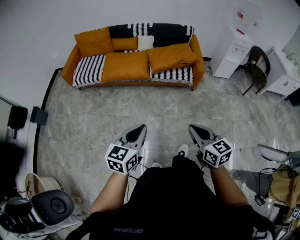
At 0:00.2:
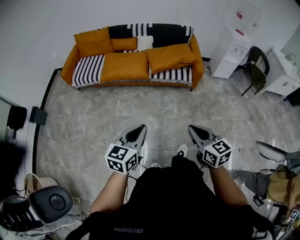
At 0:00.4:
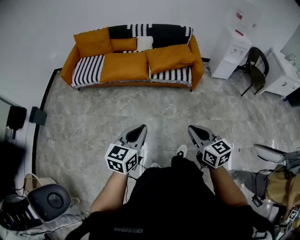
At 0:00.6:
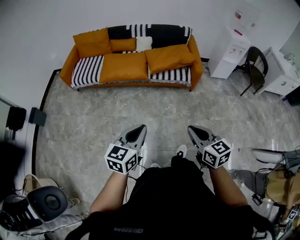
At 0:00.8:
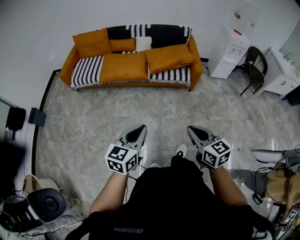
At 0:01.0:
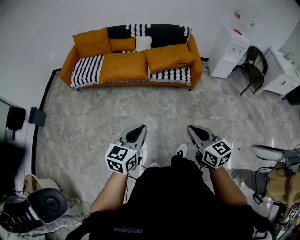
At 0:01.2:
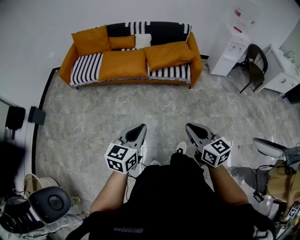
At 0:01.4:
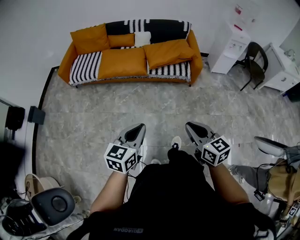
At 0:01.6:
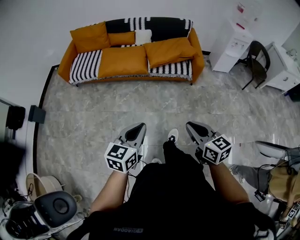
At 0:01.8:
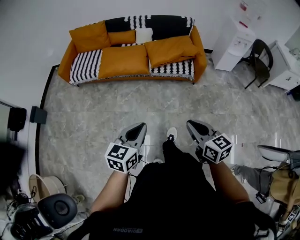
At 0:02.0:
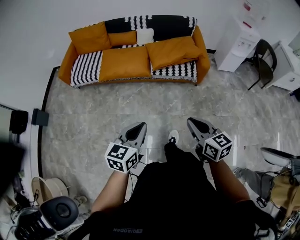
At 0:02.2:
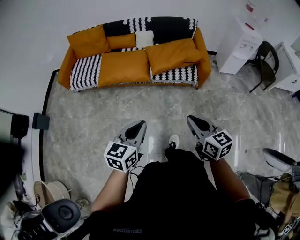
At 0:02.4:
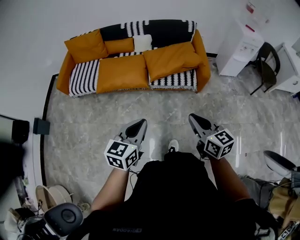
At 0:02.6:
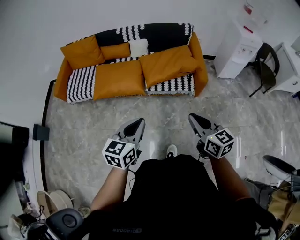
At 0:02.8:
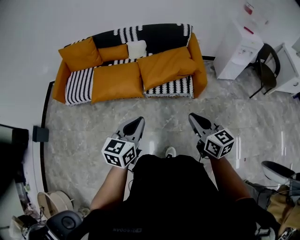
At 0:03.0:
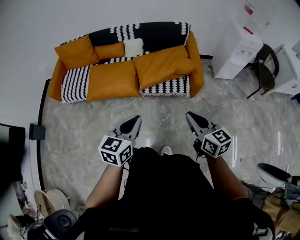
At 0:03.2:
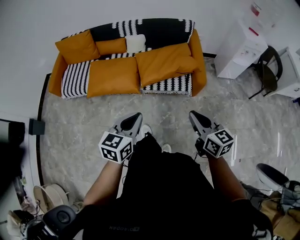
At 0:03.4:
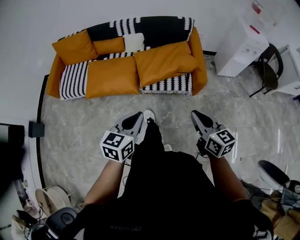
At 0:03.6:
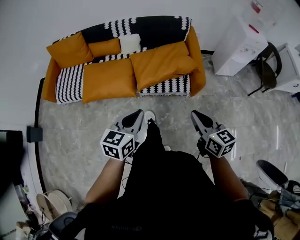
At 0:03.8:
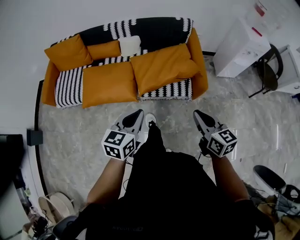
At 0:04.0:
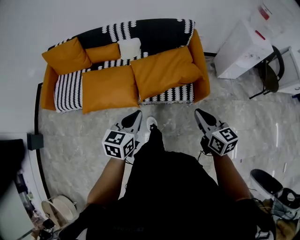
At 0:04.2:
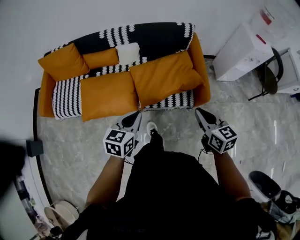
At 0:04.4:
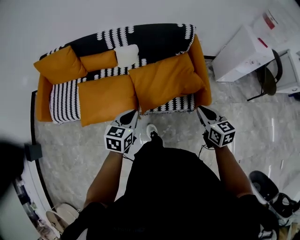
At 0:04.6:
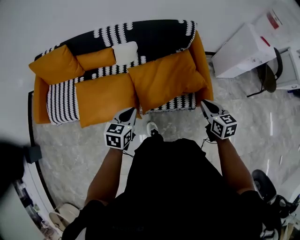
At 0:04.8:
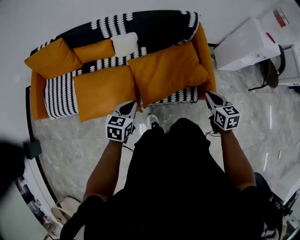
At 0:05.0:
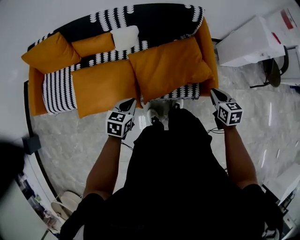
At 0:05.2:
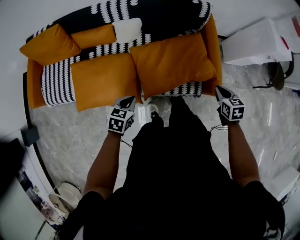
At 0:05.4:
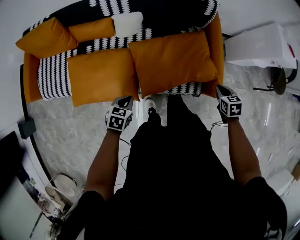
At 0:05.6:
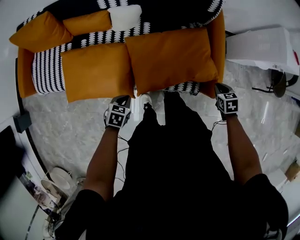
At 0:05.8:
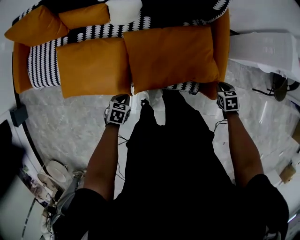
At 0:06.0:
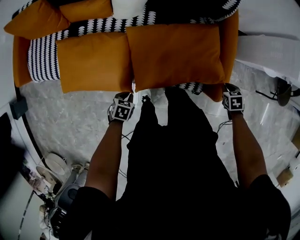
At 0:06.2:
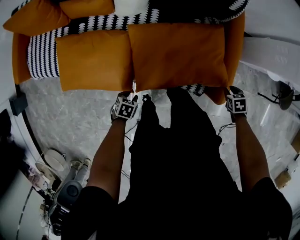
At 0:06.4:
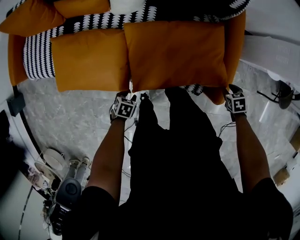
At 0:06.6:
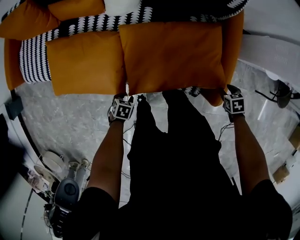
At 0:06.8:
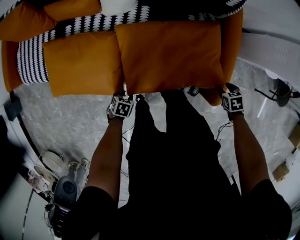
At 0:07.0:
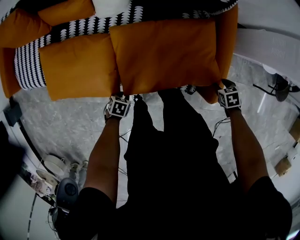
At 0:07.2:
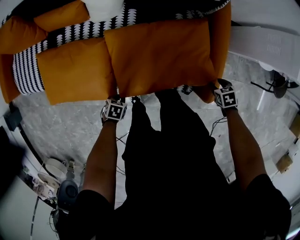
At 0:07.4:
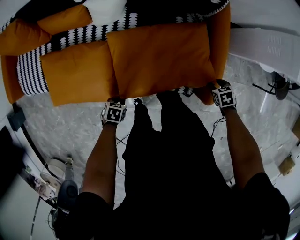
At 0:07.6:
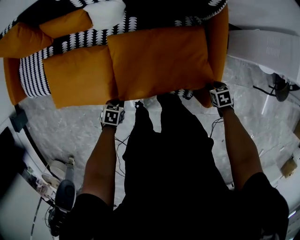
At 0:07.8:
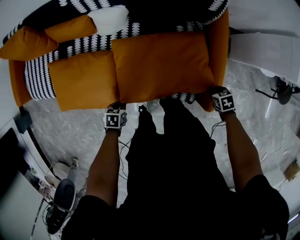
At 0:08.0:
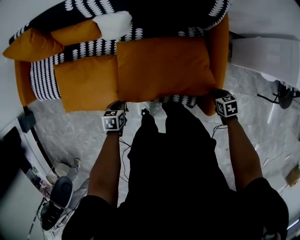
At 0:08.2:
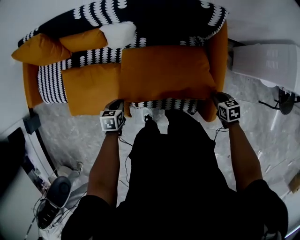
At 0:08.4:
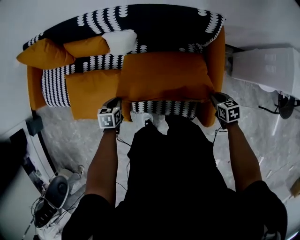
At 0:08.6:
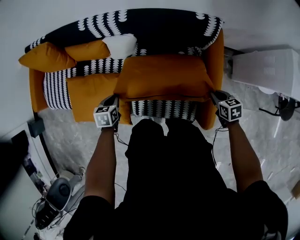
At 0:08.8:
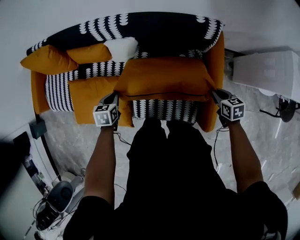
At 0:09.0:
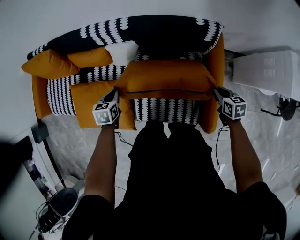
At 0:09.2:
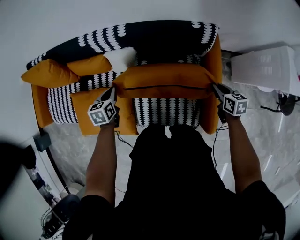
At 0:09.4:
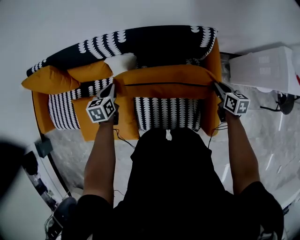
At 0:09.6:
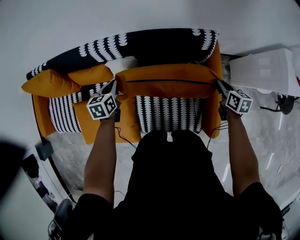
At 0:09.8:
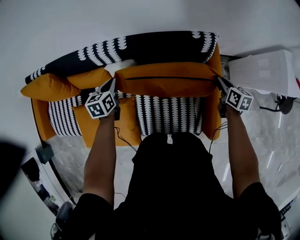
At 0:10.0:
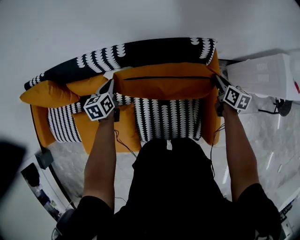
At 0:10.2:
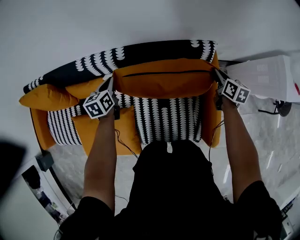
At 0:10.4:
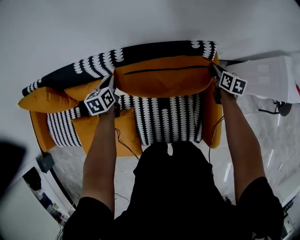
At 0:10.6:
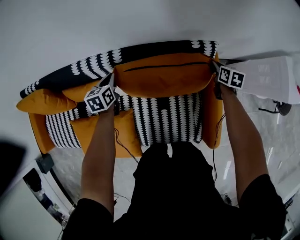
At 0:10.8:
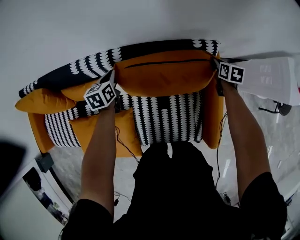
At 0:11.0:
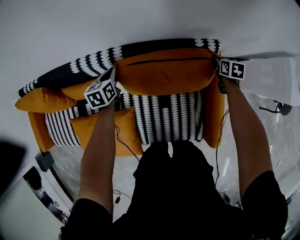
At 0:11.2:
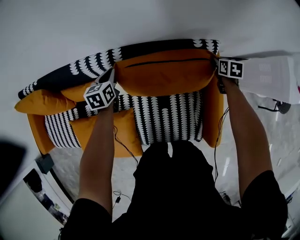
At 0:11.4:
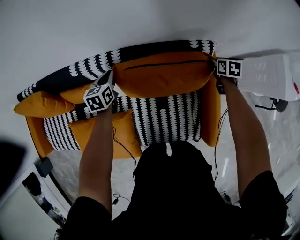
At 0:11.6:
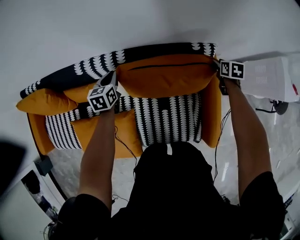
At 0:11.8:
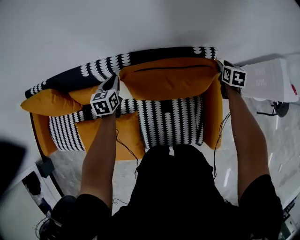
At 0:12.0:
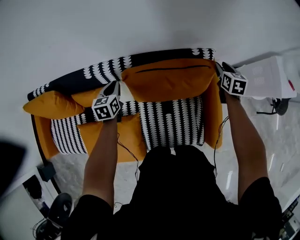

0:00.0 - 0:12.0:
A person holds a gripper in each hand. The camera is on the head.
0:00.0 - 0:01.6: The grippers move only a little.
0:01.6 - 0:03.0: The grippers both shift forward by about 30 cm.
0:03.0 - 0:04.4: The two grippers go roughly 30 cm forward.
0:04.4 - 0:06.0: The two grippers go roughly 30 cm downward. The left gripper tilts its fingers approximately 40 degrees downward. Meanwhile the right gripper tilts its fingers approximately 50 degrees downward.
0:06.0 - 0:07.6: The left gripper reaches roughly 10 cm downward, then returns, and opens, then closes once more. Meanwhile the right gripper travels downward by approximately 5 cm.
0:07.6 - 0:09.0: The left gripper ends up some 30 cm from where it was, and swivels roughly 30 degrees. The right gripper shifts by about 20 cm, and turns by some 30 degrees.
0:09.0 - 0:10.4: The two grippers go approximately 25 cm forward. The right gripper swivels some 30 degrees.
0:10.4 - 0:12.0: The right gripper travels upward by some 10 cm, and opens. The left gripper moves about 5 cm.

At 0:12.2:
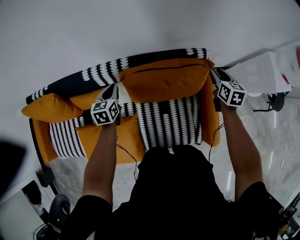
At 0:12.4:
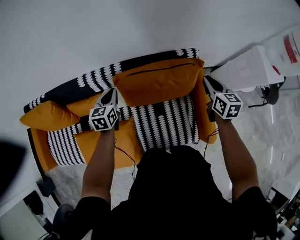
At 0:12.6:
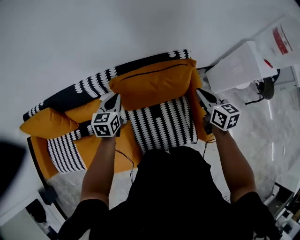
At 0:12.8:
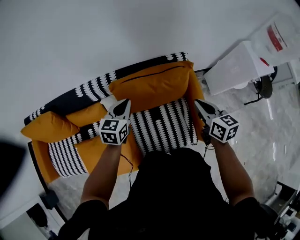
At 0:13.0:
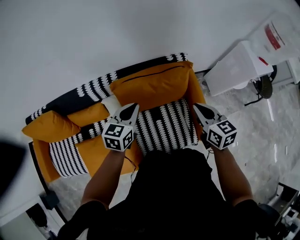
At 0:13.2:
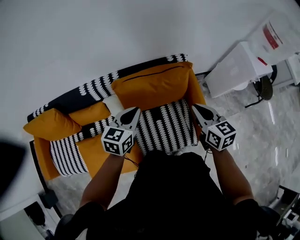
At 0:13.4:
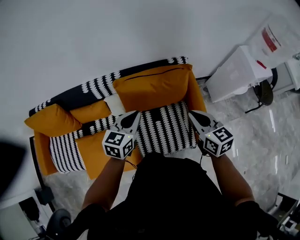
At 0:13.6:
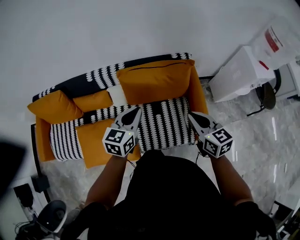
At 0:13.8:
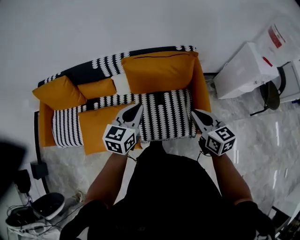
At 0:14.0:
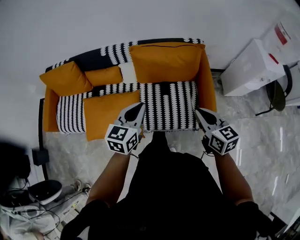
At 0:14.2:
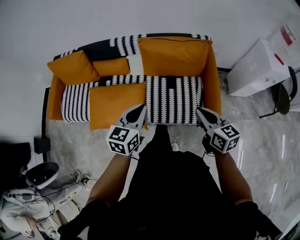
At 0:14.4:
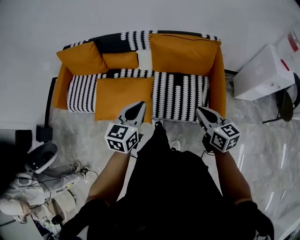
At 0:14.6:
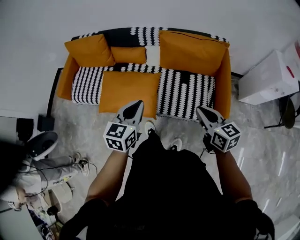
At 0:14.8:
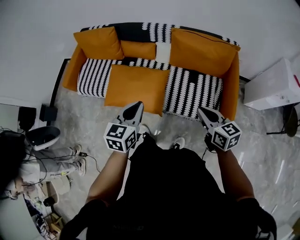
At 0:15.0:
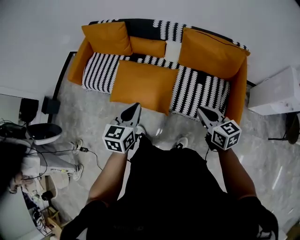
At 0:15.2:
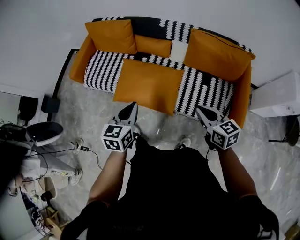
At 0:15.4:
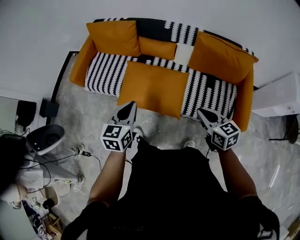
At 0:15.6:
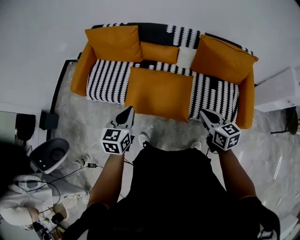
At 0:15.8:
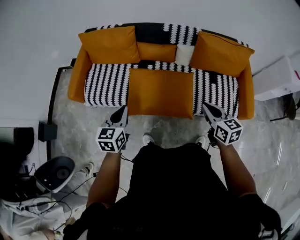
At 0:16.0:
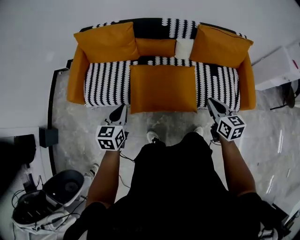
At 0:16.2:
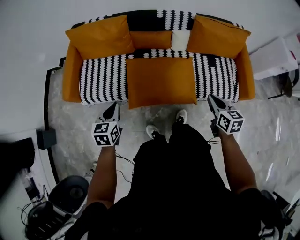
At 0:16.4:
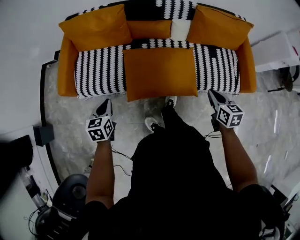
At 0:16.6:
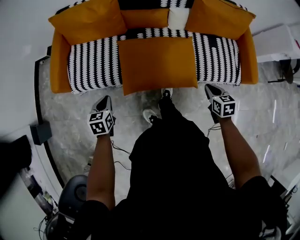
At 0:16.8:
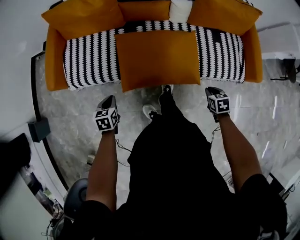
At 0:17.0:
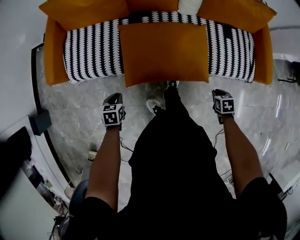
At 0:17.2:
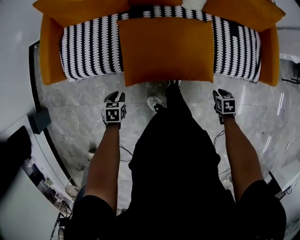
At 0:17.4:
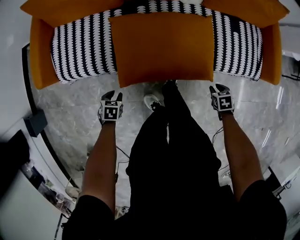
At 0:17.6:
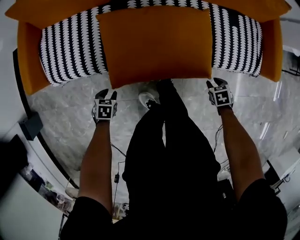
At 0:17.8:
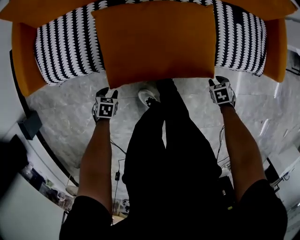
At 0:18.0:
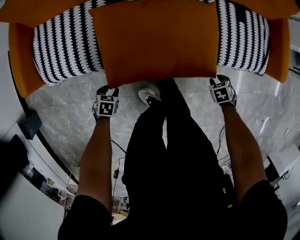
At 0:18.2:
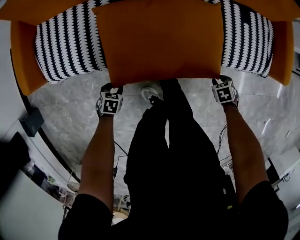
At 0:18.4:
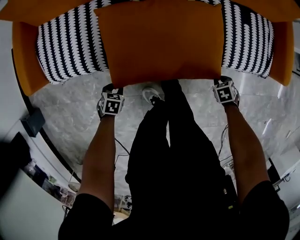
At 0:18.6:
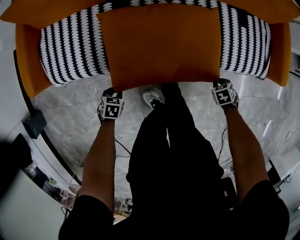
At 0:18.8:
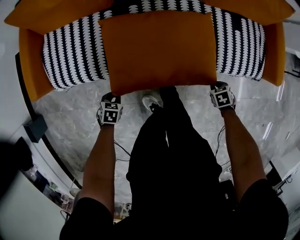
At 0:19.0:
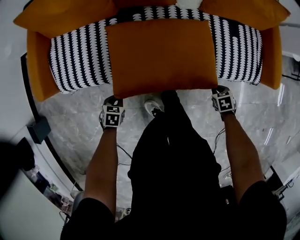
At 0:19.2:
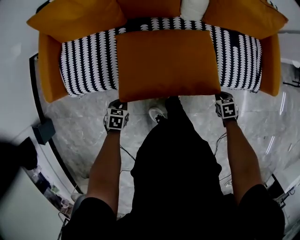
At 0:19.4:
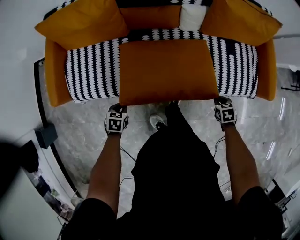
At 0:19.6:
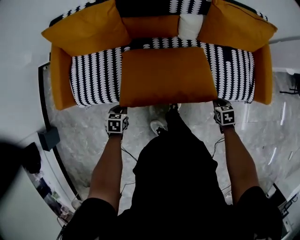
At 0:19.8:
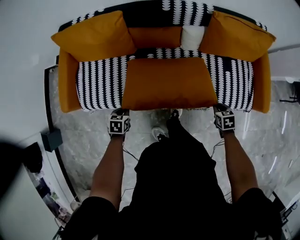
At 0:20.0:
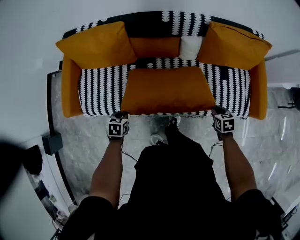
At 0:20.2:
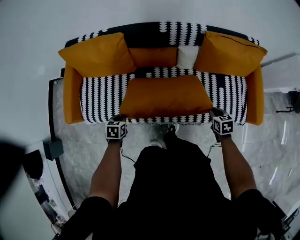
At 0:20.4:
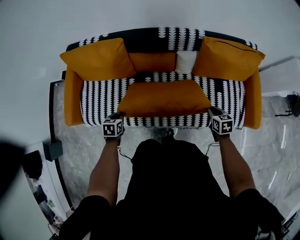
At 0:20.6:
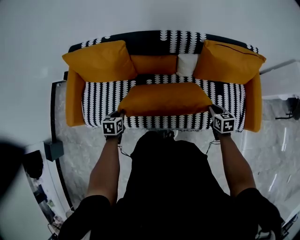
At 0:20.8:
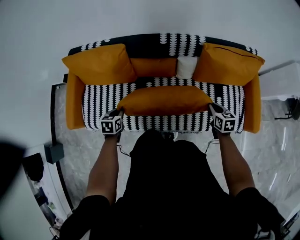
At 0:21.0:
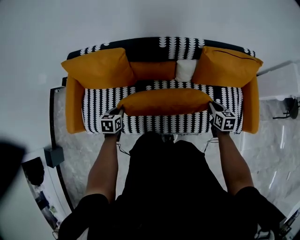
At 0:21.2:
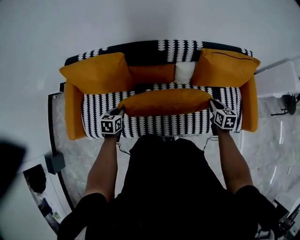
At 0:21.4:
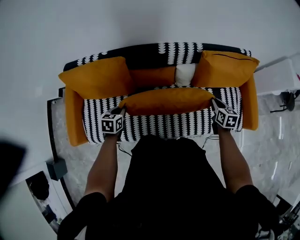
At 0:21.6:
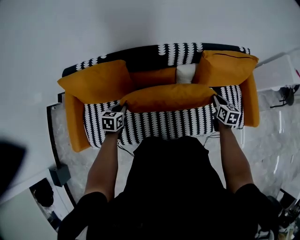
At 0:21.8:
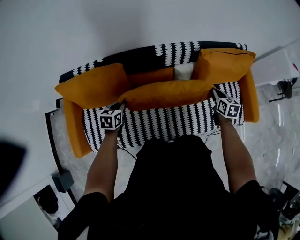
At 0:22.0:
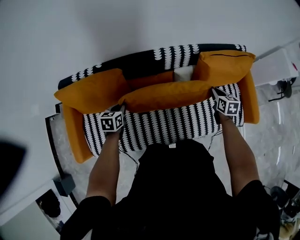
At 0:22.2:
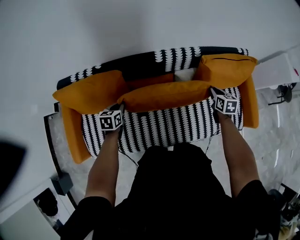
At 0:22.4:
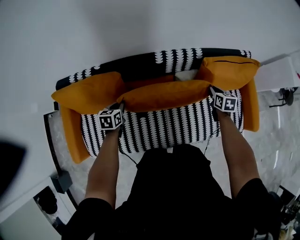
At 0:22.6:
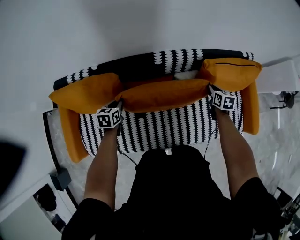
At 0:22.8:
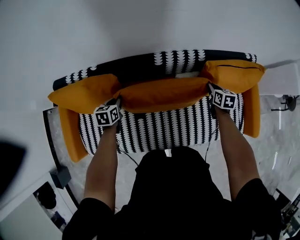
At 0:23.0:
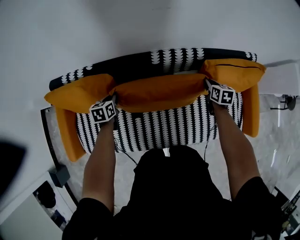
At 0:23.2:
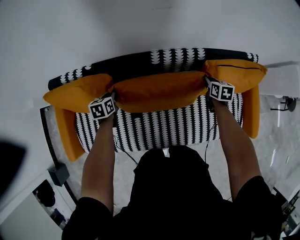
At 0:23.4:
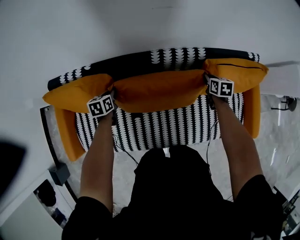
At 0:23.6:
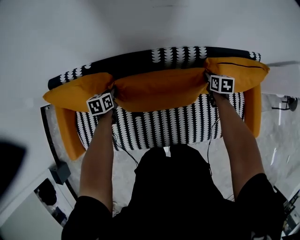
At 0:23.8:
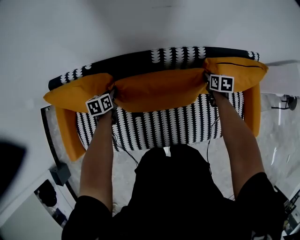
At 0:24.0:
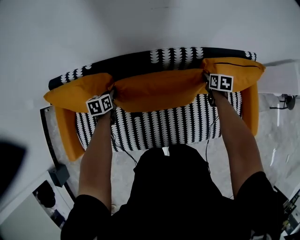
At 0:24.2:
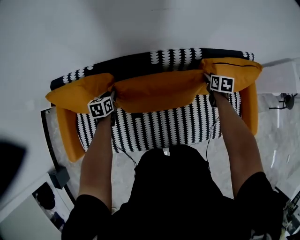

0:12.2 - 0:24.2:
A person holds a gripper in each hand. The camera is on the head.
0:12.2 - 0:13.8: The left gripper shifts some 40 cm backward, to the right and upward, and changes its angle by some 20 degrees. The right gripper moves backward, some 35 cm, changes its angle by roughly 30 degrees, and closes up.
0:13.8 - 0:15.2: The right gripper shifts by about 25 cm, and turns by approximately 30 degrees. The left gripper ends up some 35 cm from where it was, and turns by some 30 degrees.
0:15.2 - 0:16.6: The right gripper is displaced downward and to the left by some 25 cm, and changes its angle by some 40 degrees. Meanwhile the left gripper is displaced to the left and downward by some 40 cm, and rotates some 20 degrees.
0:16.6 - 0:18.2: Both grippers move downward, some 35 cm. The right gripper angles its fingers downward, by roughly 40 degrees, and opens; the left gripper swivels roughly 40 degrees, and opens.
0:18.2 - 0:19.8: Both grippers travel together upward, about 20 cm. The left gripper closes its fingers. Meanwhile the right gripper turns by roughly 30 degrees, and closes its fingers.
0:19.8 - 0:21.2: Both grippers move forward and upward, about 25 cm. The right gripper swivels some 30 degrees.
0:21.2 - 0:22.6: The two grippers go some 20 cm forward.
0:22.6 - 0:24.2: The two grippers go roughly 5 cm forward.
